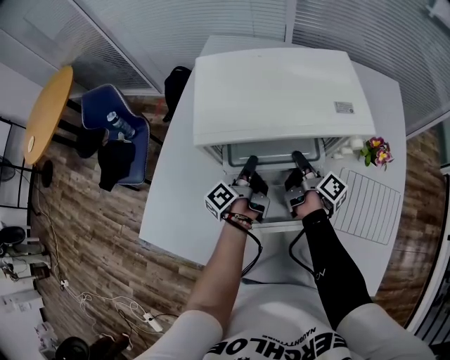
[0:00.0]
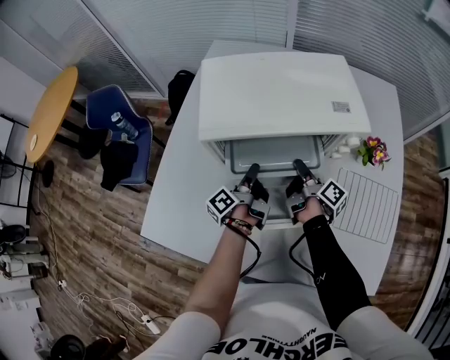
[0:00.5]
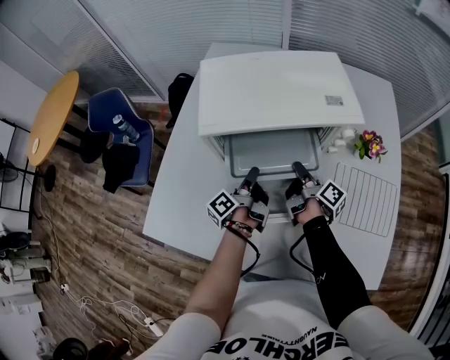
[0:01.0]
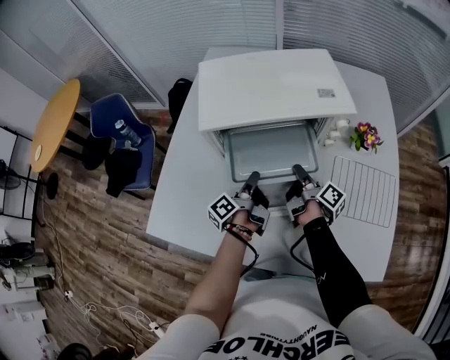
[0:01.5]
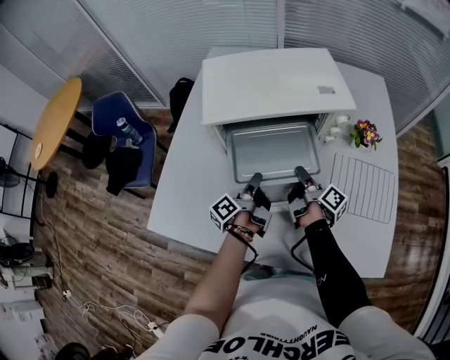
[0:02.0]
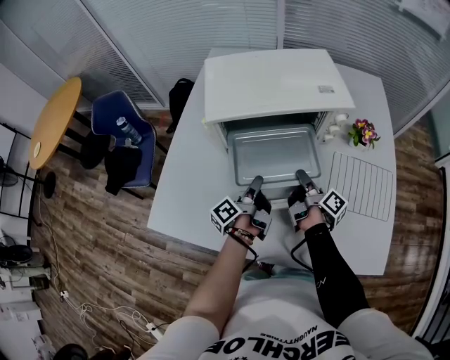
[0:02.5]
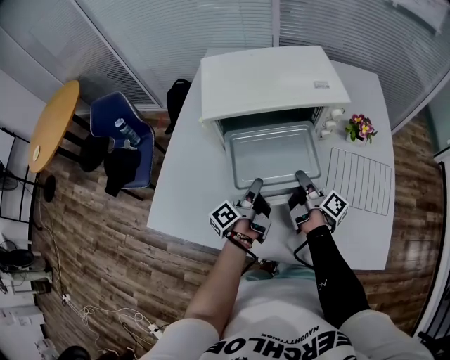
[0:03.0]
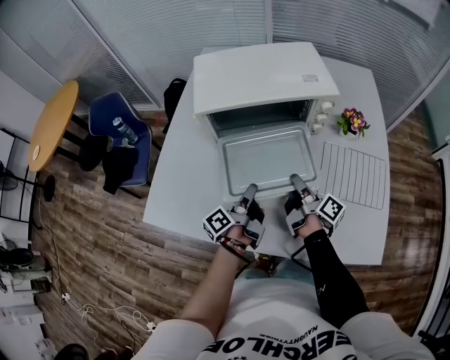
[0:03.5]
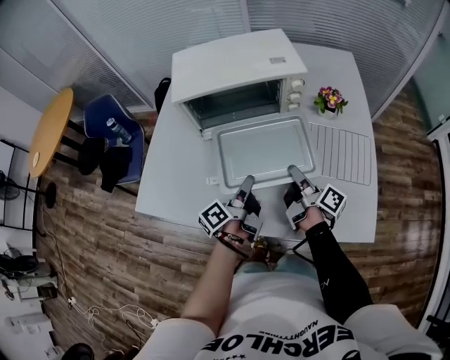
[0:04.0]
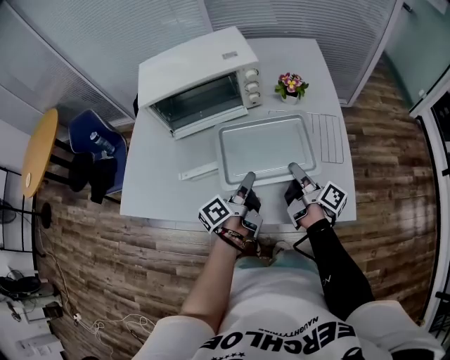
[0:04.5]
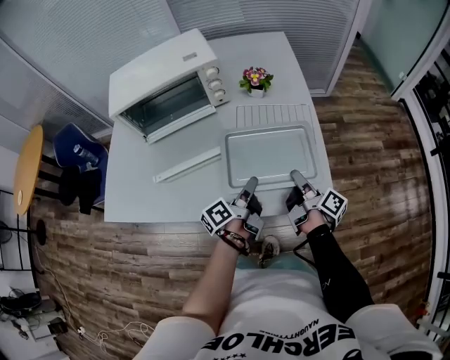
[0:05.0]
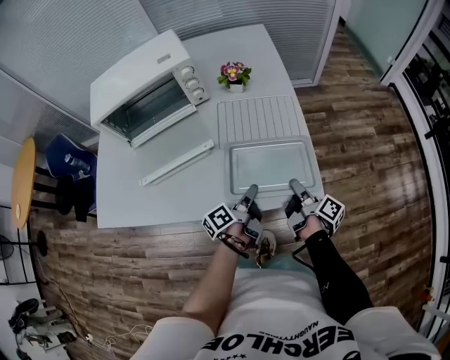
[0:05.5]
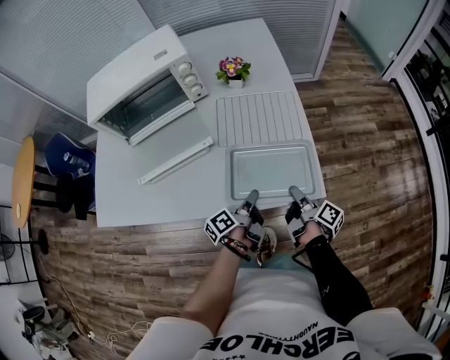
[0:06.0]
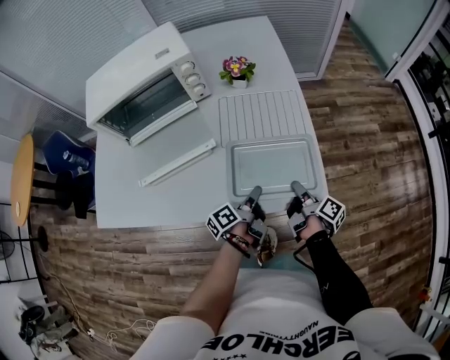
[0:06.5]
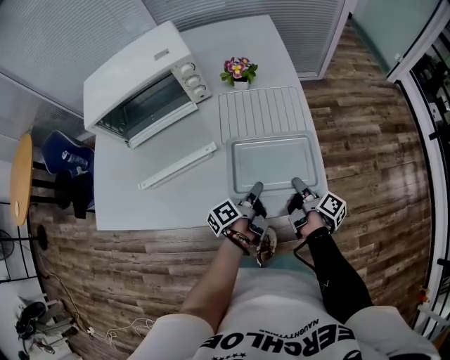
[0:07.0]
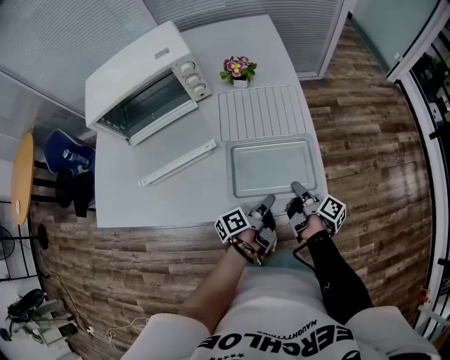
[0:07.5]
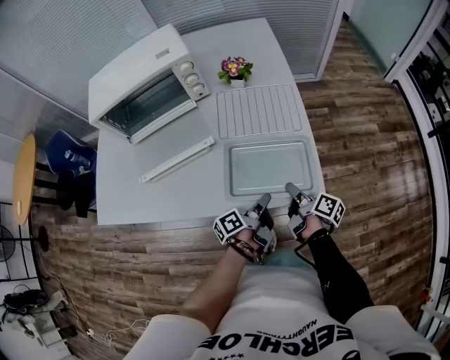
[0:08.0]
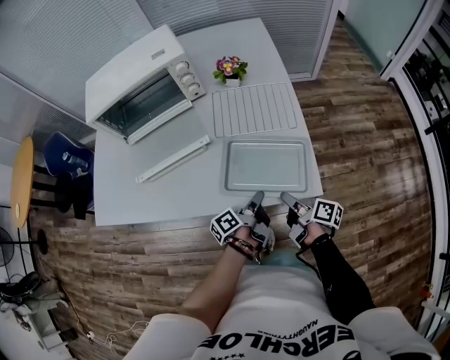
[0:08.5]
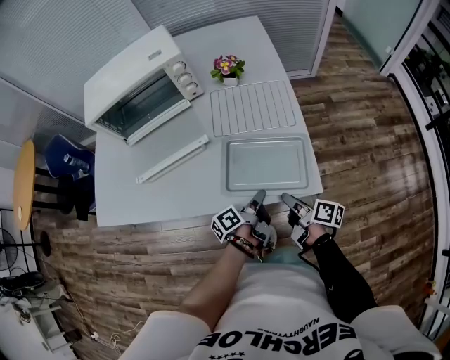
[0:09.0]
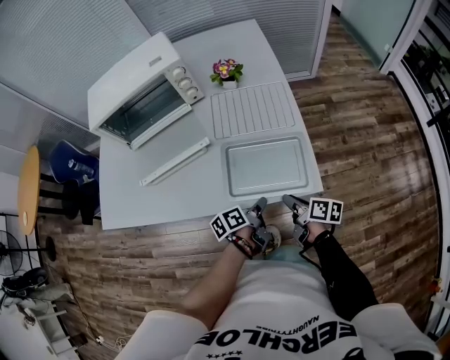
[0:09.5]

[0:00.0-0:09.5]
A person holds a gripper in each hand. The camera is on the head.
0:00.0 to 0:02.0: The two grippers go approximately 10 cm backward.
0:02.0 to 0:04.0: Both grippers move backward and to the right, approximately 15 cm.
0:04.0 to 0:05.5: The right gripper goes some 30 cm to the right and backward, and turns by some 20 degrees. Meanwhile the left gripper heads to the right, covering about 25 cm, and changes its angle by some 20 degrees.
0:05.5 to 0:07.5: The left gripper shifts by approximately 5 cm.
0:07.5 to 0:09.5: The right gripper is displaced backward by some 5 cm, and turns by about 30 degrees.

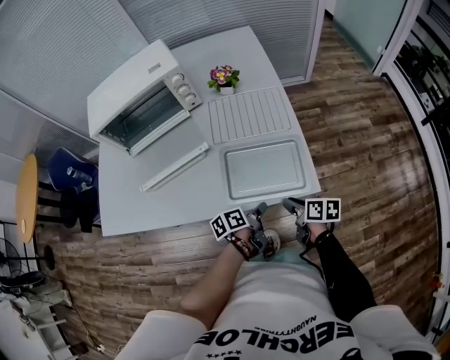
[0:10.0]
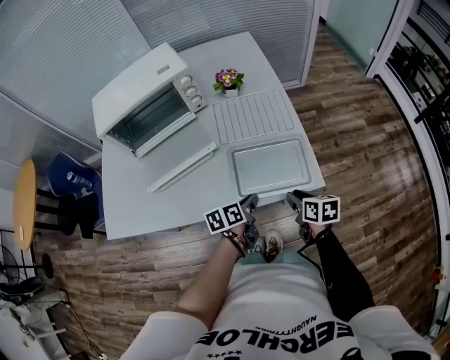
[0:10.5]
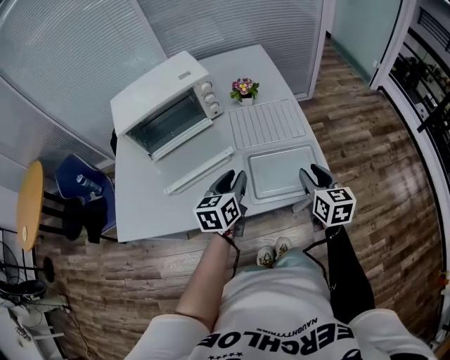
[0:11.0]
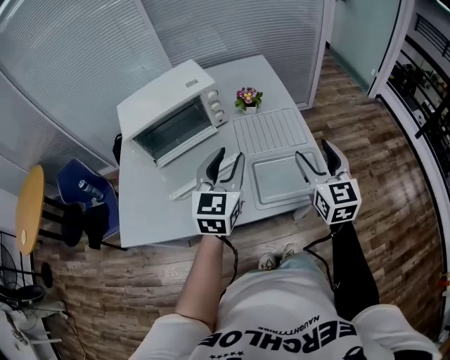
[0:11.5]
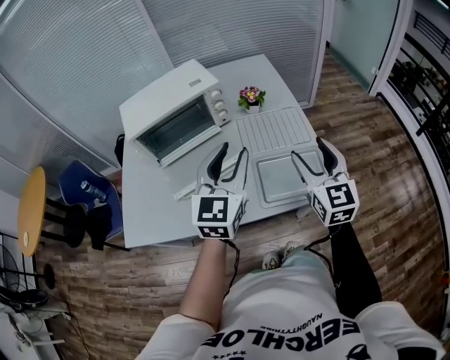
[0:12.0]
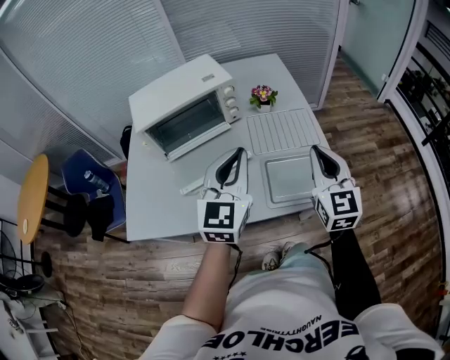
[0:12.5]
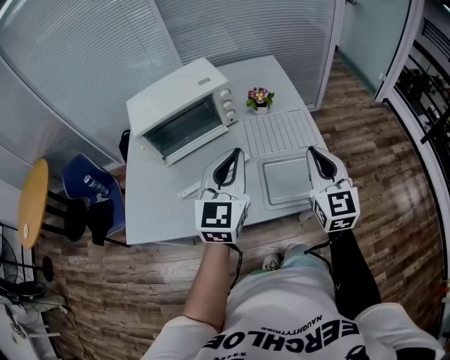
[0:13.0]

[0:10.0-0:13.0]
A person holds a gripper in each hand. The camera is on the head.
0:10.0 to 0:11.5: The right gripper goes some 30 cm upward, tilts its fingers about 30 degrees upward, and opens up. Meanwhile the left gripper is displaced upward and to the left by roughly 35 cm, twists roughly 80 degrees clockwise, seen from behind, and opens its fingers.
0:11.5 to 0:13.0: The left gripper closes up. The right gripper closes its fingers.

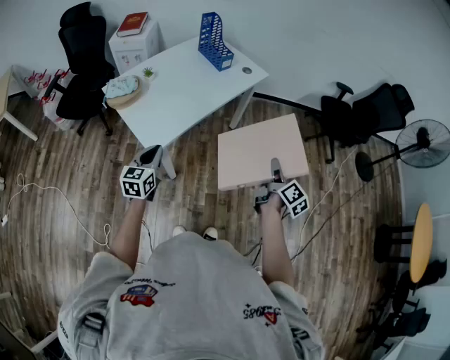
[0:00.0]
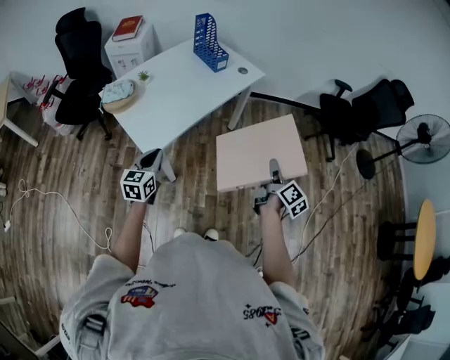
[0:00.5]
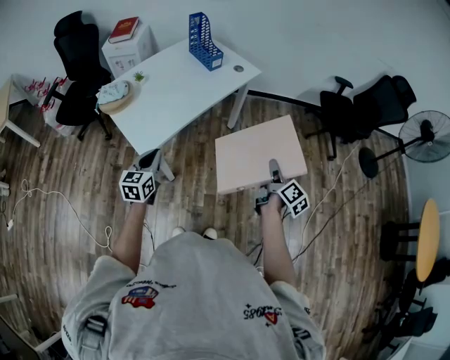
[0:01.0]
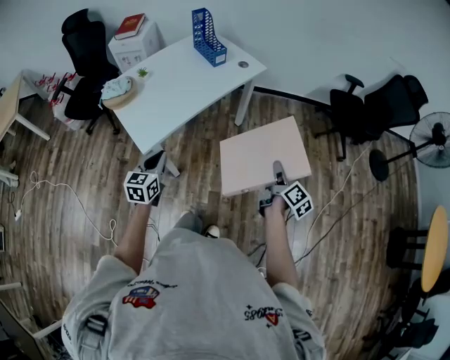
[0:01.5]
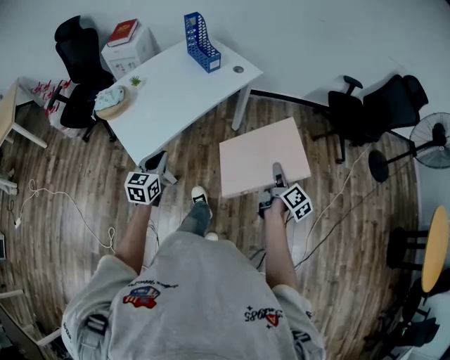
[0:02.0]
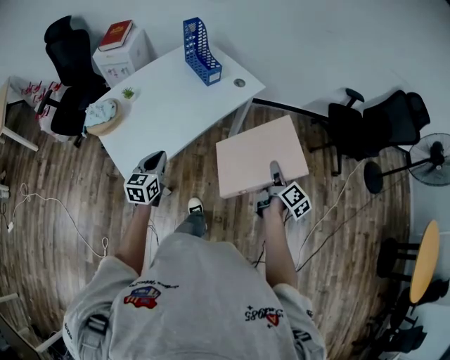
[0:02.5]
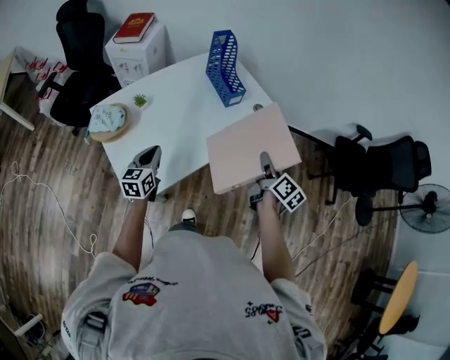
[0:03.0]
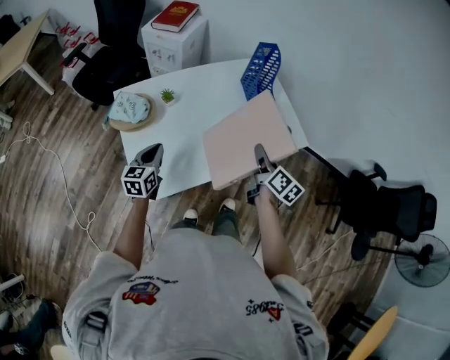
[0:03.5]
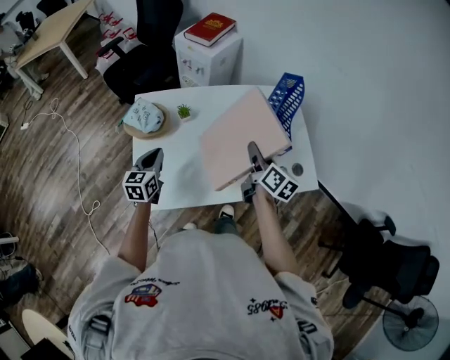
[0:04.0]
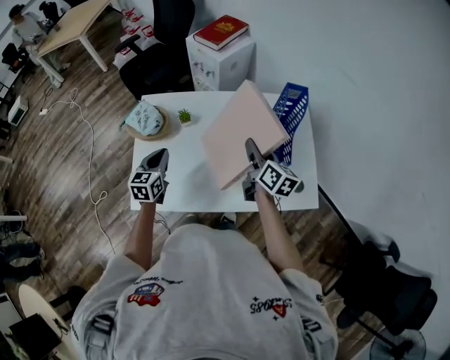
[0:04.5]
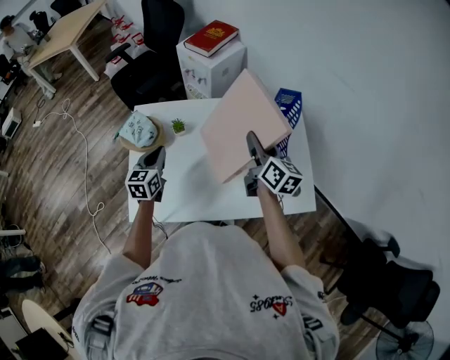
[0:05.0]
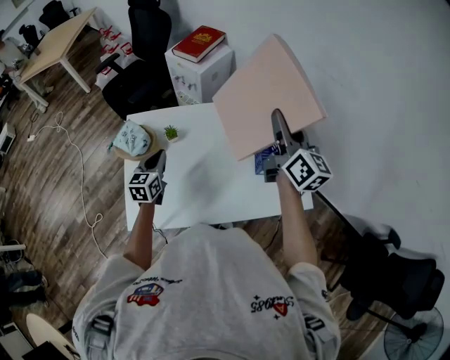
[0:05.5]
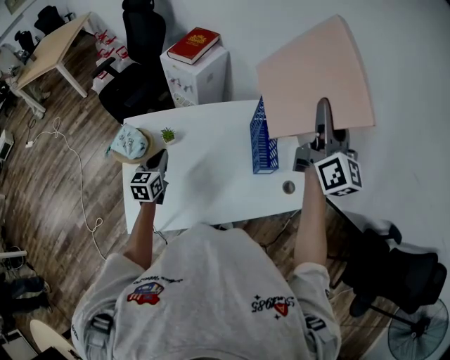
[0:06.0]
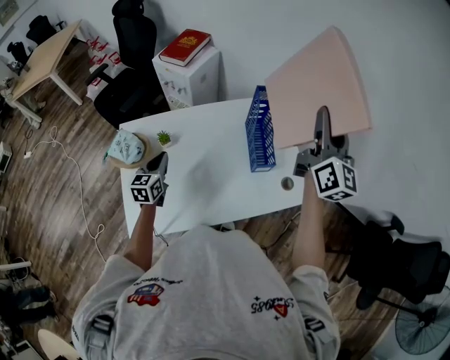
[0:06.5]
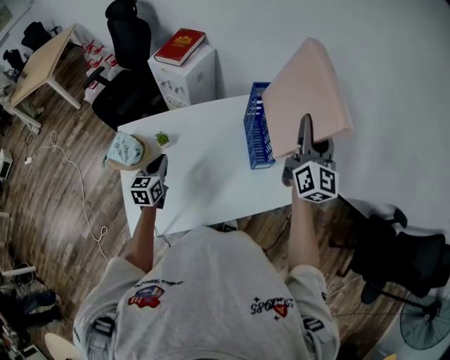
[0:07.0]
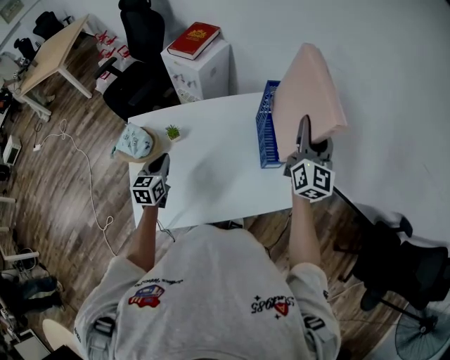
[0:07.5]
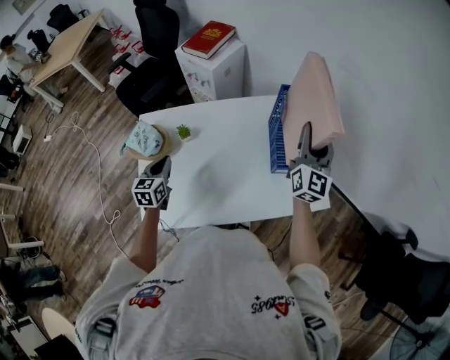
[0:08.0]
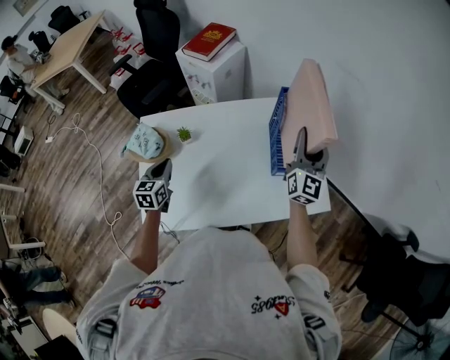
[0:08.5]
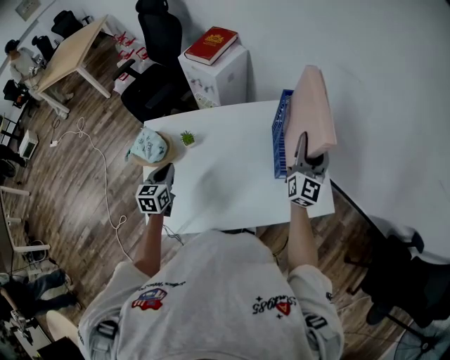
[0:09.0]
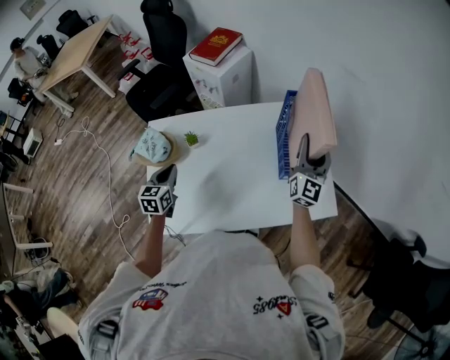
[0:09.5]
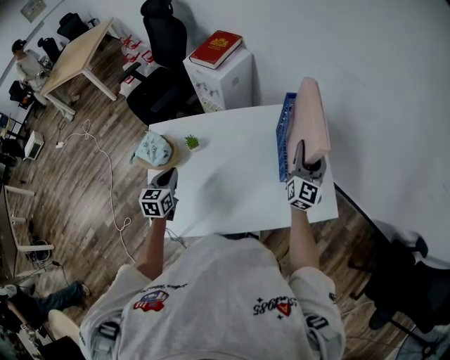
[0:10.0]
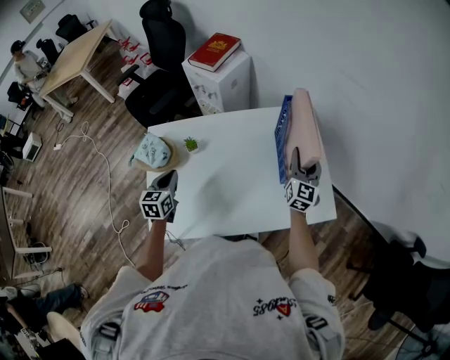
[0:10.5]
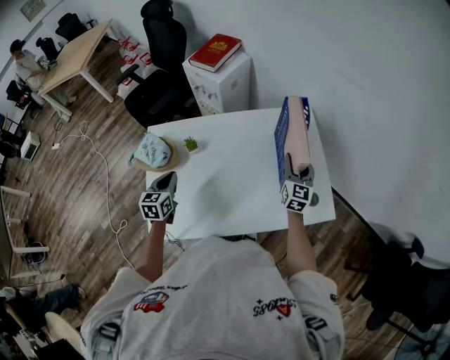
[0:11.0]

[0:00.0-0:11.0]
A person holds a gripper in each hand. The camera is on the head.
0:00.0 to 0:02.0: The right gripper travels to the right, forward and downward by about 15 cm. Meanwhile the left gripper shifts roughly 15 cm to the right and forward.
0:02.0 to 0:03.5: The right gripper ends up approximately 50 cm from where it was, and rotates approximately 40 degrees; the left gripper moves roughly 35 cm, and swivels some 20 degrees.
0:03.5 to 0:05.5: The left gripper ends up roughly 15 cm from where it was; the right gripper shifts by roughly 35 cm, and swivels about 40 degrees.
0:05.5 to 0:07.5: The right gripper shifts approximately 10 cm to the right, and swivels about 30 degrees.
0:07.5 to 0:09.0: The right gripper moves downward, some 10 cm.
0:09.0 to 0:11.0: The right gripper shifts approximately 15 cm downward, and changes its angle by some 20 degrees.

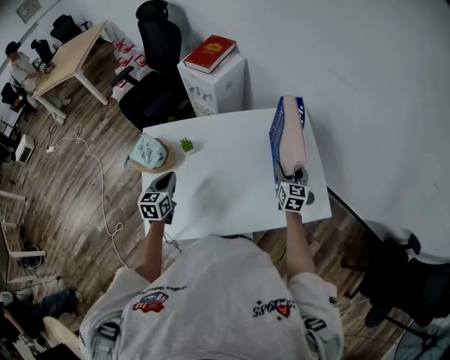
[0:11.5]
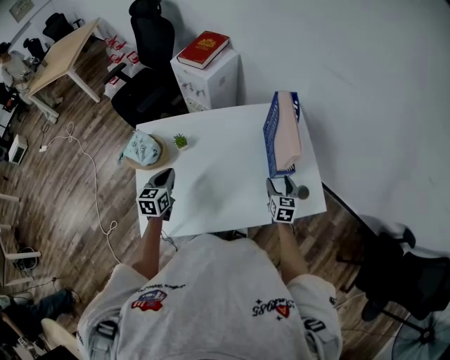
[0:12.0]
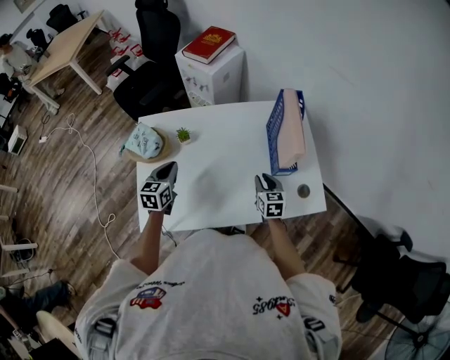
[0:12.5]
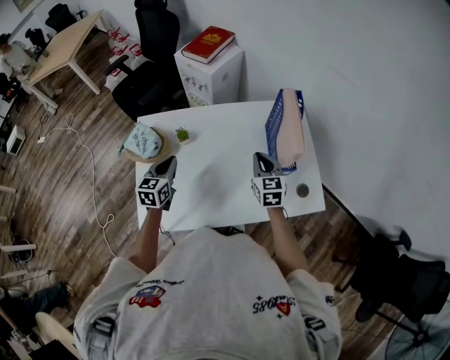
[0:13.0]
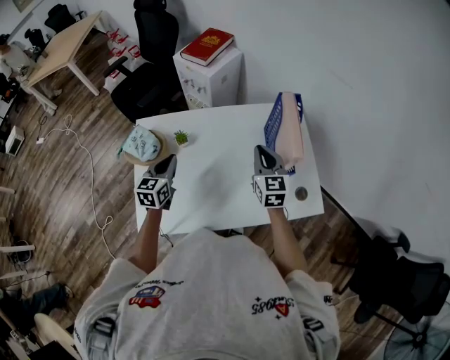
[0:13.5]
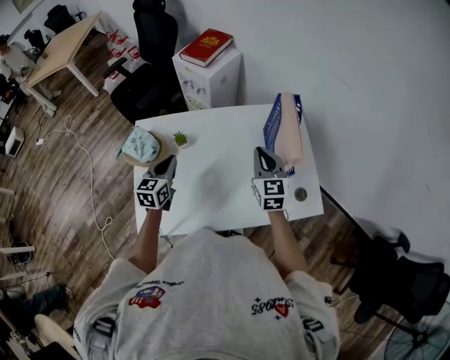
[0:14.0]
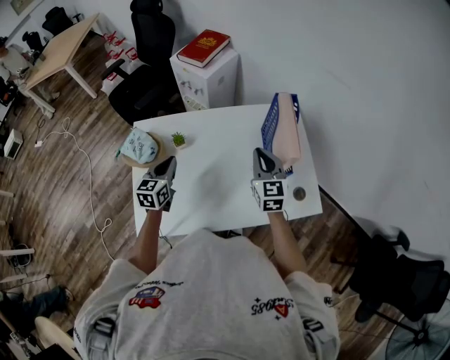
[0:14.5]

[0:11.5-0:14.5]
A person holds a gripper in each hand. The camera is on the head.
0:11.5 to 0:13.0: The right gripper moves to the left, approximately 10 cm, and closes.
0:13.0 to 0:14.5: The right gripper heads upward, covering about 5 cm.
